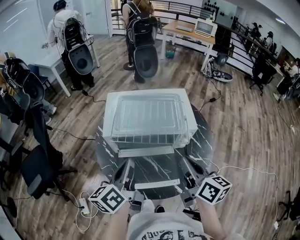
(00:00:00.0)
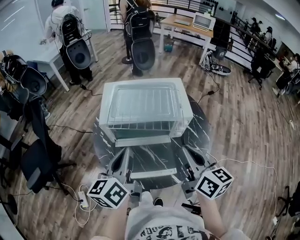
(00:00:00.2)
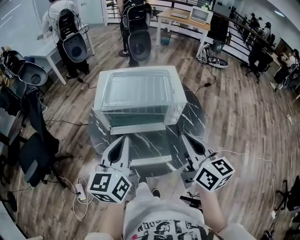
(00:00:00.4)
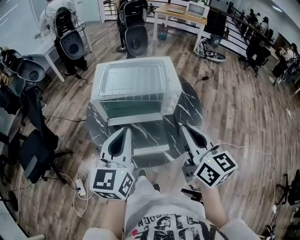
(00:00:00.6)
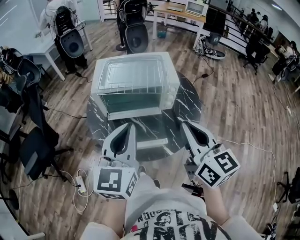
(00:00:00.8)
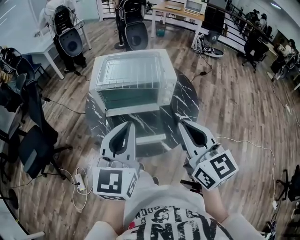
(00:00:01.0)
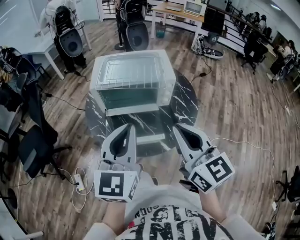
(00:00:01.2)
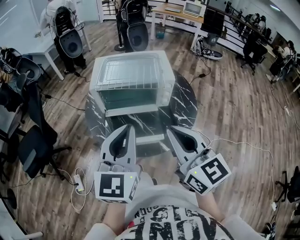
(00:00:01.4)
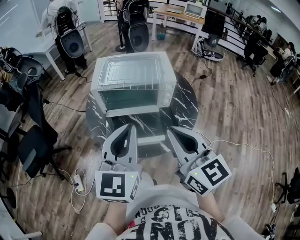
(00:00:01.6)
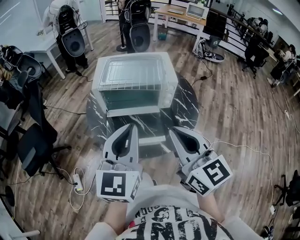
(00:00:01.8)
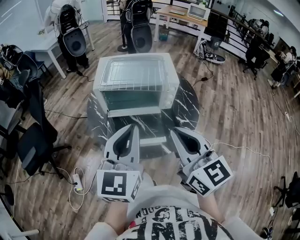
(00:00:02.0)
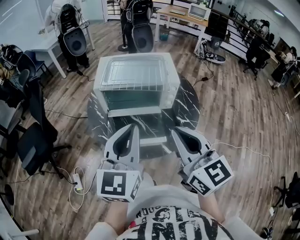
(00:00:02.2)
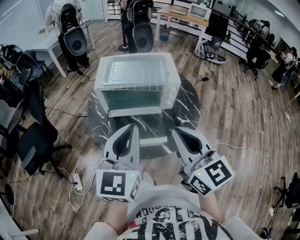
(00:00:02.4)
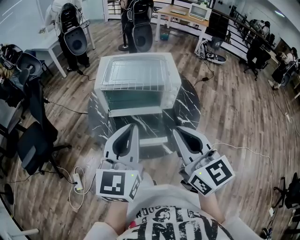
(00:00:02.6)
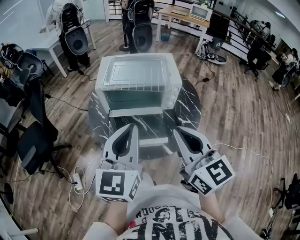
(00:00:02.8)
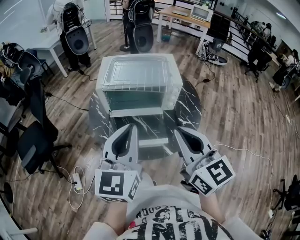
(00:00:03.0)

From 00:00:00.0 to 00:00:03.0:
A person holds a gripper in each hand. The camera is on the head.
From 00:00:00.0 to 00:00:01.6: The right gripper is displaced backward and upward by approximately 20 cm, and changes its angle by approximately 40 degrees. Meanwhile the left gripper heads backward, upward and to the right, covering roughly 20 cm, and rolls clockwise, seen from behind, by roughly 50 degrees.
From 00:00:01.6 to 00:00:03.0: The grippers stay close to where they were, moving slightly.

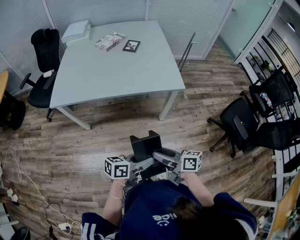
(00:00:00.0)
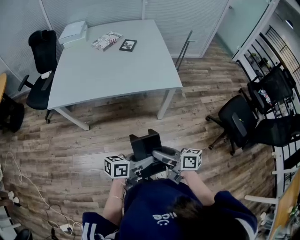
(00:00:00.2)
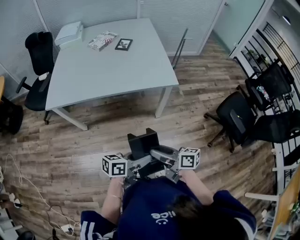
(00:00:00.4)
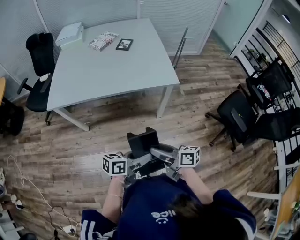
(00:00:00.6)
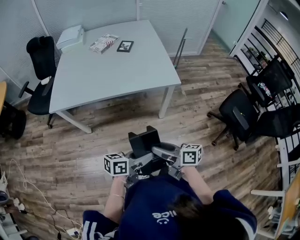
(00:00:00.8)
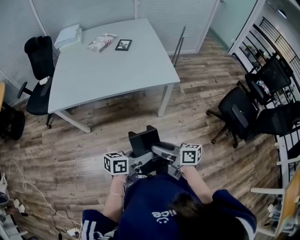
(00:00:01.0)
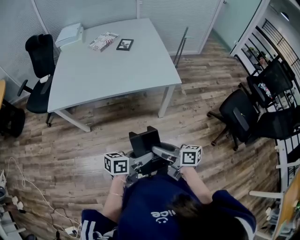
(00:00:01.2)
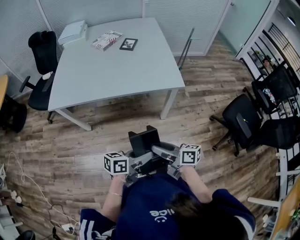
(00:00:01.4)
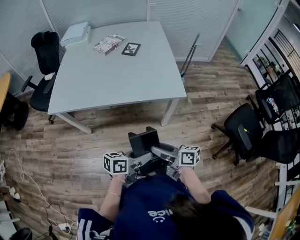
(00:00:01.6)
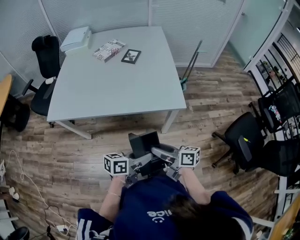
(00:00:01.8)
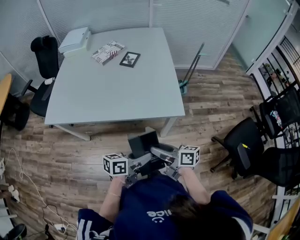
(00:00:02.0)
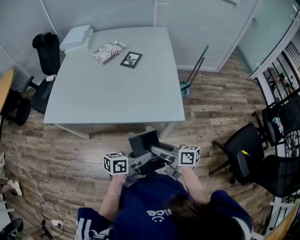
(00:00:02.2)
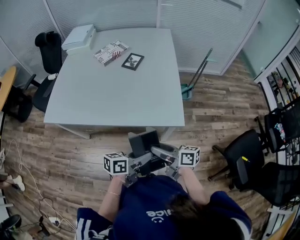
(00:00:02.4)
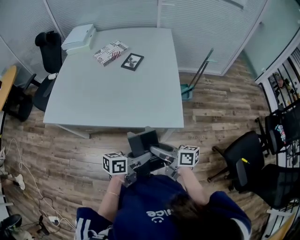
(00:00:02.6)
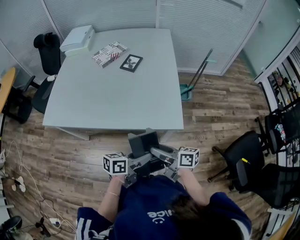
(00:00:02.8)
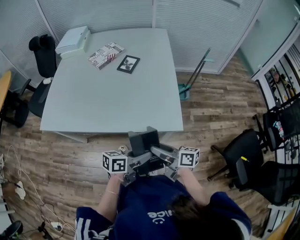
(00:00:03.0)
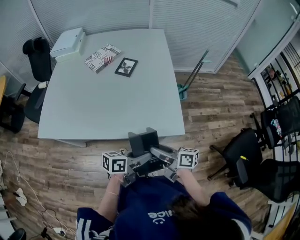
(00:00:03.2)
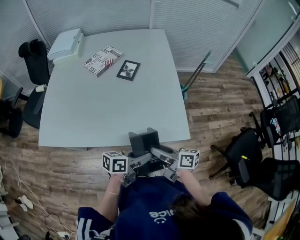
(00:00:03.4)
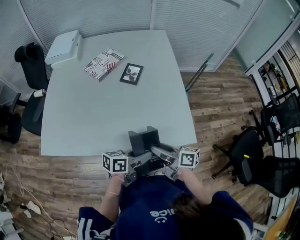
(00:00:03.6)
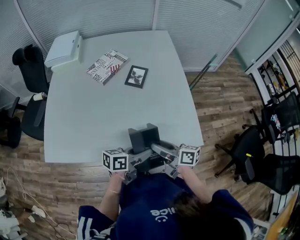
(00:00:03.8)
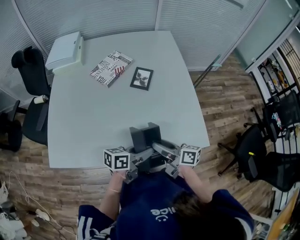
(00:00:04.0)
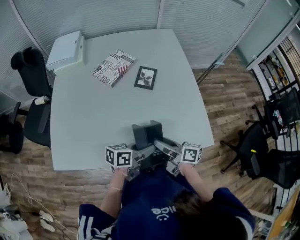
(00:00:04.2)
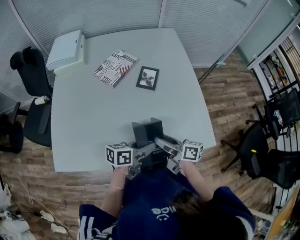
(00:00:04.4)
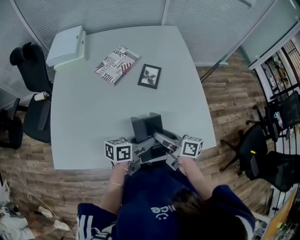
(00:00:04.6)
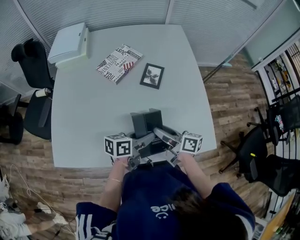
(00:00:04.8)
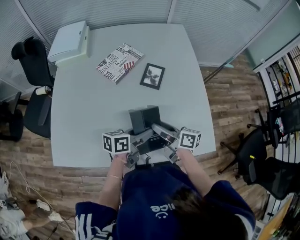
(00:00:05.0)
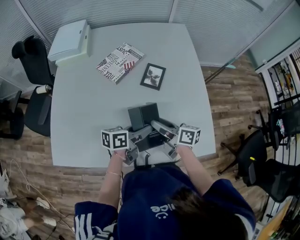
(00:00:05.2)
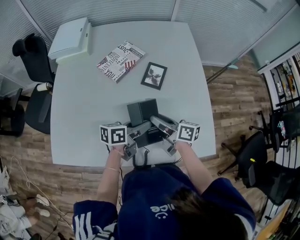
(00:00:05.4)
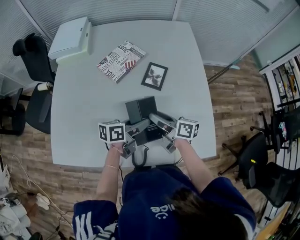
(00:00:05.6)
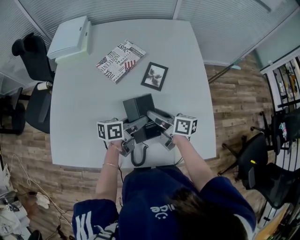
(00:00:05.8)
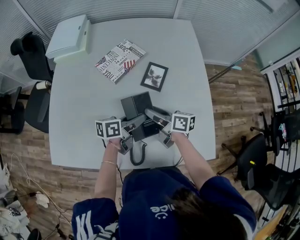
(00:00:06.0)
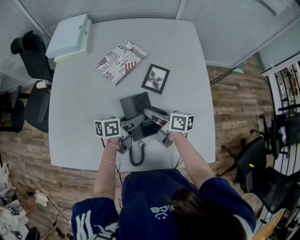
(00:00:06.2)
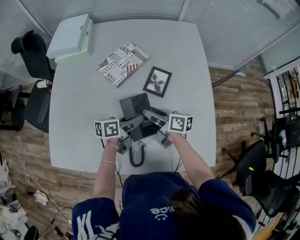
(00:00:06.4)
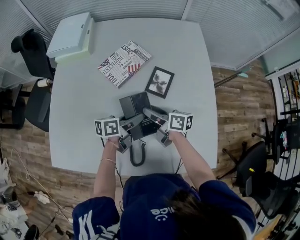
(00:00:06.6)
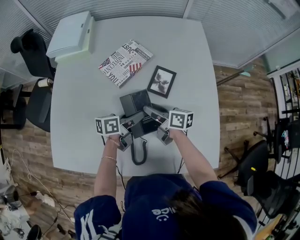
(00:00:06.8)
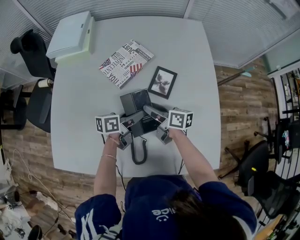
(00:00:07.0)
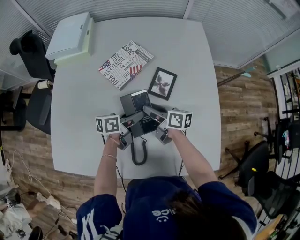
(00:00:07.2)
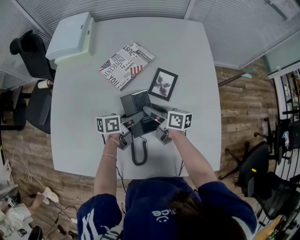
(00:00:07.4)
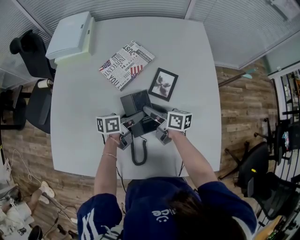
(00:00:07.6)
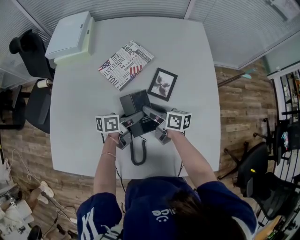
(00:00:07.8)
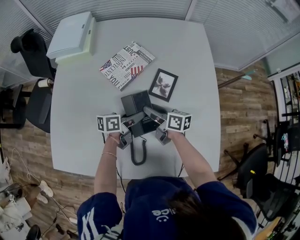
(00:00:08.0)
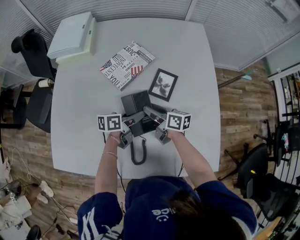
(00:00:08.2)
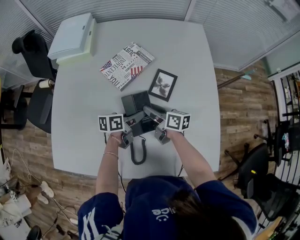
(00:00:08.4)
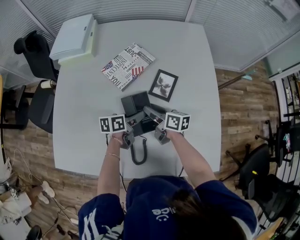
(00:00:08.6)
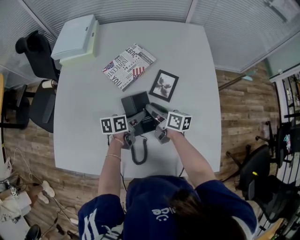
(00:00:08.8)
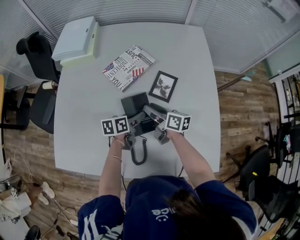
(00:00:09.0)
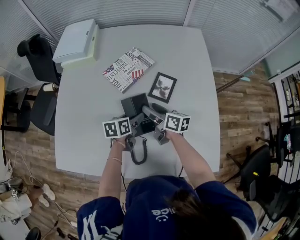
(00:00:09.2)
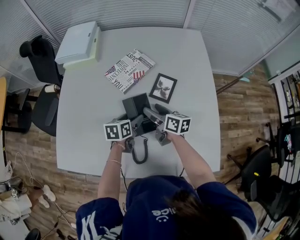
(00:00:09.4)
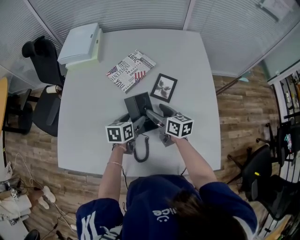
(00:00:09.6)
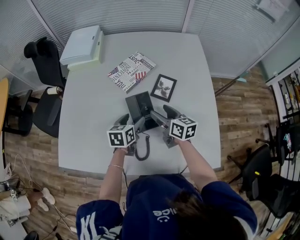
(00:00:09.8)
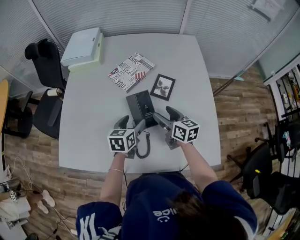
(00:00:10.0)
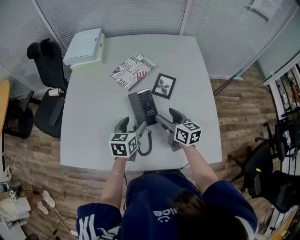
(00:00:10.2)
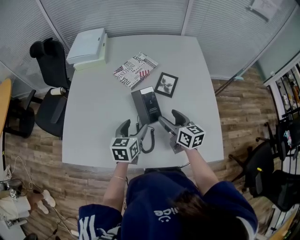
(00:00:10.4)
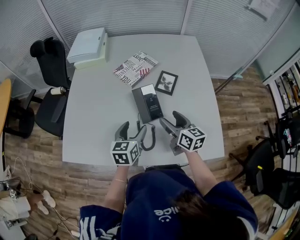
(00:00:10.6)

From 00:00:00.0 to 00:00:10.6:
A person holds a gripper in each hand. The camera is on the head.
From 00:00:00.0 to 00:00:01.6: Both grippers move forward, approximately 10 cm.
From 00:00:01.6 to 00:00:03.0: The two grippers go roughly 20 cm forward.
From 00:00:03.0 to 00:00:04.6: Both grippers travel together to the left and forward, some 30 cm.
From 00:00:04.6 to 00:00:06.0: The grippers both shift forward by some 15 cm.
From 00:00:06.0 to 00:00:07.6: Both grippers travel together forward, roughly 5 cm.
From 00:00:07.6 to 00:00:09.0: The left gripper rotates some 20 degrees, and opens.
From 00:00:09.0 to 00:00:10.6: The left gripper is displaced backward, upward and to the left by roughly 20 cm, and turns by roughly 30 degrees. Meanwhile the right gripper shifts about 15 cm backward and upward, swivels approximately 30 degrees, and opens.

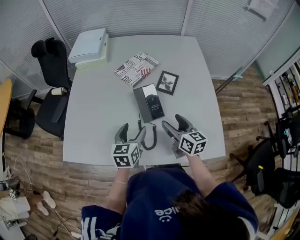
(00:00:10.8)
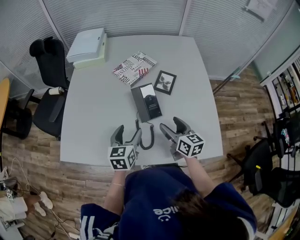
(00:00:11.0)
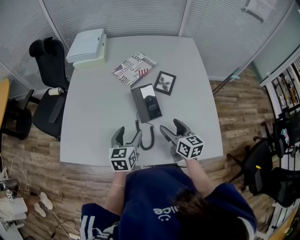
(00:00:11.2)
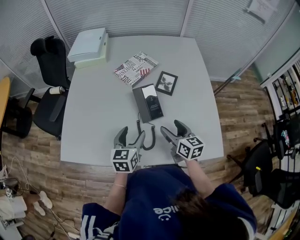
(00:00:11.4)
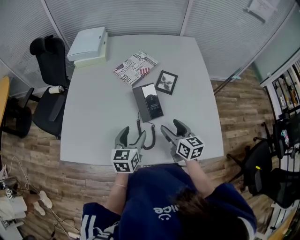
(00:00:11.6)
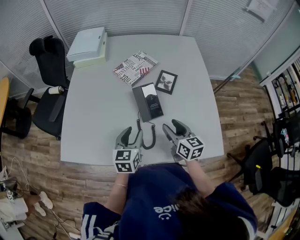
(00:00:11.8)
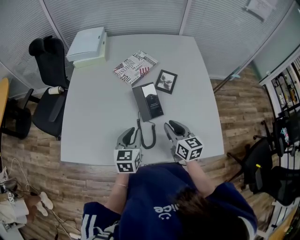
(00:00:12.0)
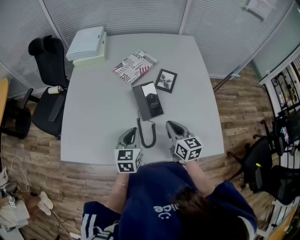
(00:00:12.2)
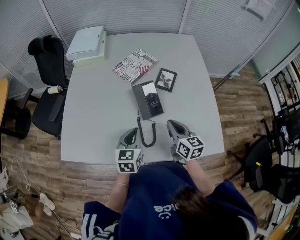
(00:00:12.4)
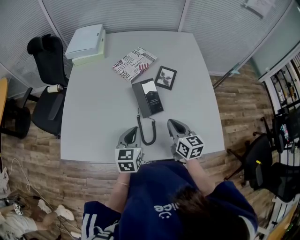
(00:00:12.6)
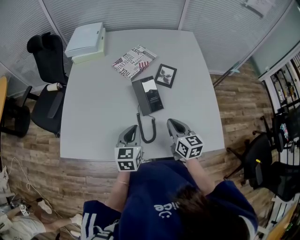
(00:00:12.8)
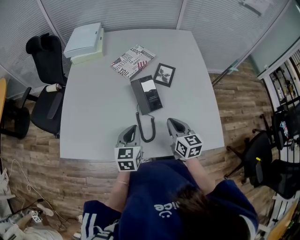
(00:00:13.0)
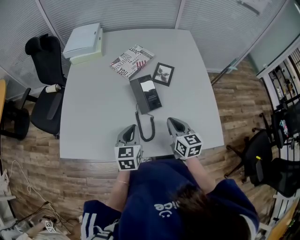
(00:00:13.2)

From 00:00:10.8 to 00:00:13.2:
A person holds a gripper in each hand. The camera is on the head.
From 00:00:10.8 to 00:00:12.0: The left gripper closes up; the right gripper closes.
From 00:00:12.0 to 00:00:13.2: There are only small adjustments of the grippers.

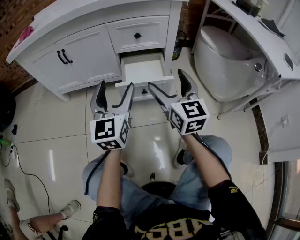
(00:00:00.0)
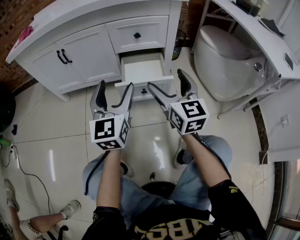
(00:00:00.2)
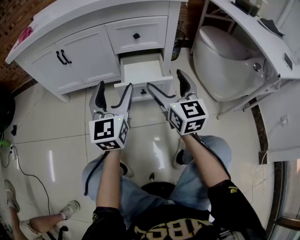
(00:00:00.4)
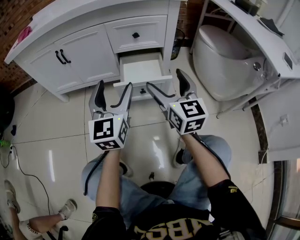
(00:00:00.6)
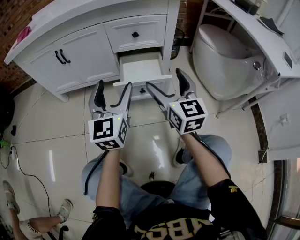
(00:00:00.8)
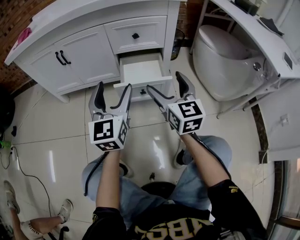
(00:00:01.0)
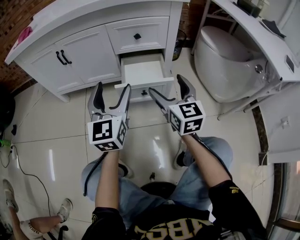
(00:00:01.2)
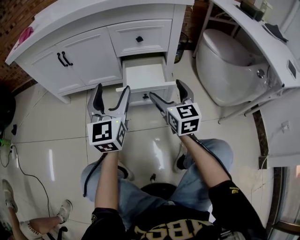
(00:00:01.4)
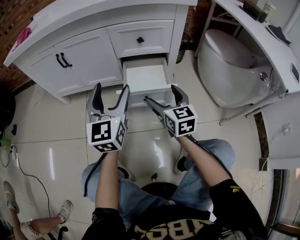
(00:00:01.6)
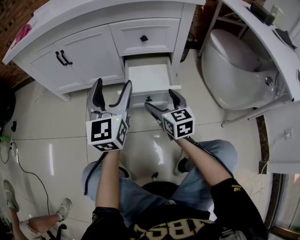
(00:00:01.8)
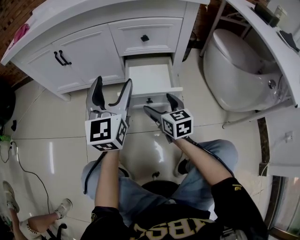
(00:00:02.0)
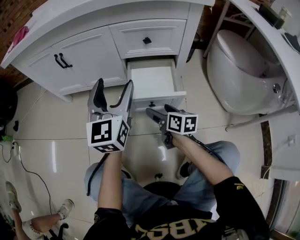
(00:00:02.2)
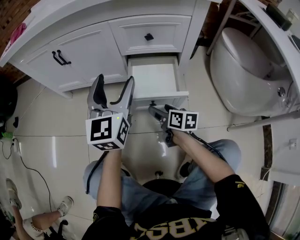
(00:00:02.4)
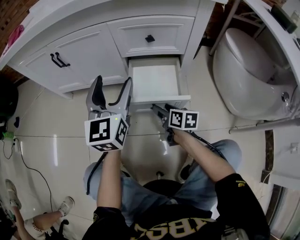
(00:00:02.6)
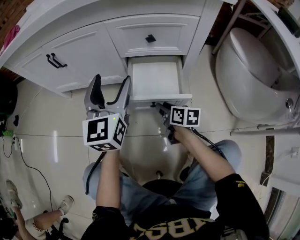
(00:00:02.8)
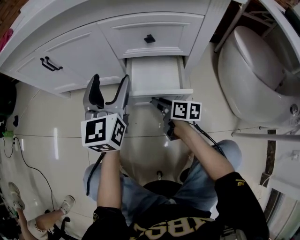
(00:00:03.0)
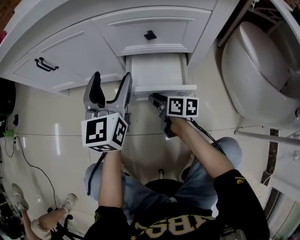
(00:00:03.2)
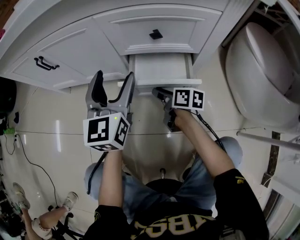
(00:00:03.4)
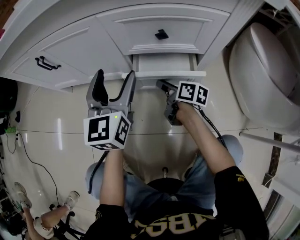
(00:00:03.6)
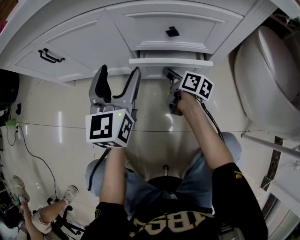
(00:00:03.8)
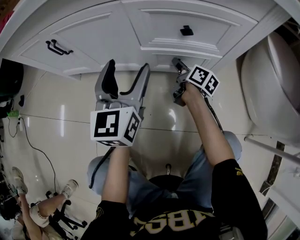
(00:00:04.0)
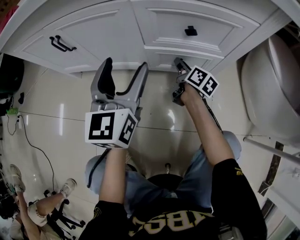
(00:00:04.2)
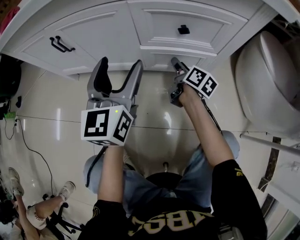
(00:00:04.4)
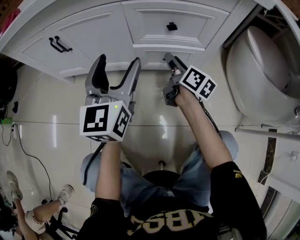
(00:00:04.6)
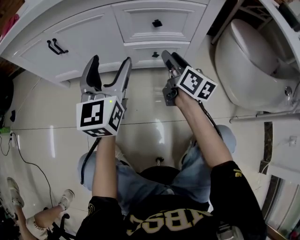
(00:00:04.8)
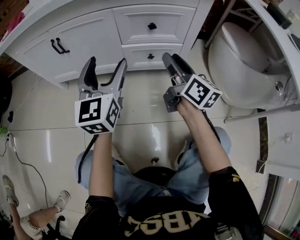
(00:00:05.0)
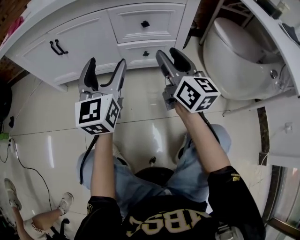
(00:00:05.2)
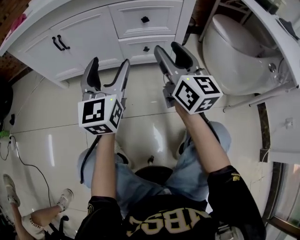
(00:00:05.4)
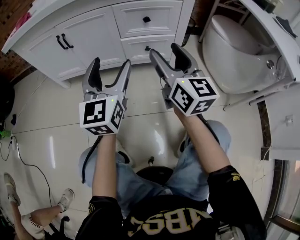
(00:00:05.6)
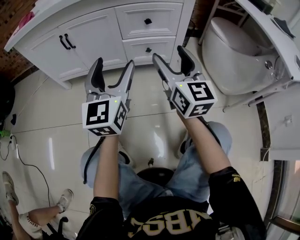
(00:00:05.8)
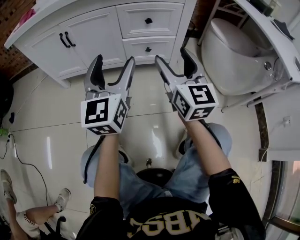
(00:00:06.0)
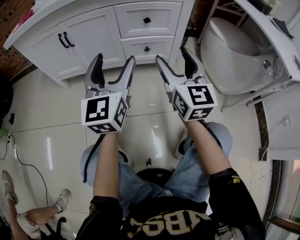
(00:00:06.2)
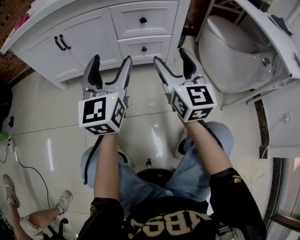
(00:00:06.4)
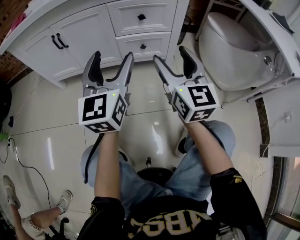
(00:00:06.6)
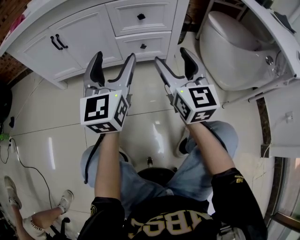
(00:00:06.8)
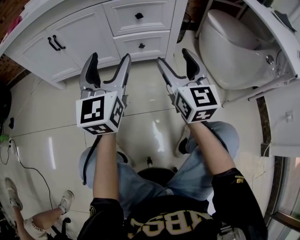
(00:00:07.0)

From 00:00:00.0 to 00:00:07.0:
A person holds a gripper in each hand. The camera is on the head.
From 00:00:00.0 to 00:00:01.4: The right gripper shifts some 5 cm downward.
From 00:00:01.4 to 00:00:02.8: The right gripper is displaced downward and forward by approximately 25 cm, turns by roughly 50 degrees, and closes. The left gripper shifts about 15 cm forward.
From 00:00:02.8 to 00:00:04.2: The left gripper goes approximately 5 cm forward, while the right gripper is displaced forward by some 20 cm, and turns by about 20 degrees.
From 00:00:04.2 to 00:00:05.6: The left gripper moves backward, some 20 cm. The right gripper is displaced upward and backward by approximately 40 cm, and twists some 50 degrees counterclockwise, seen from behind.
From 00:00:05.6 to 00:00:07.0: The right gripper ends up approximately 5 cm from where it was.
